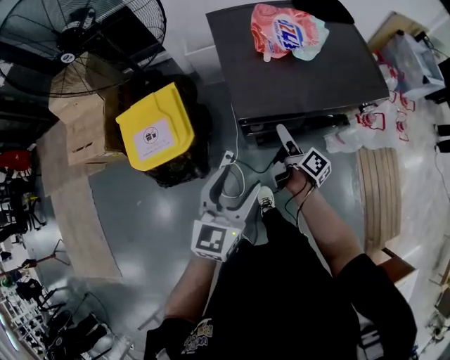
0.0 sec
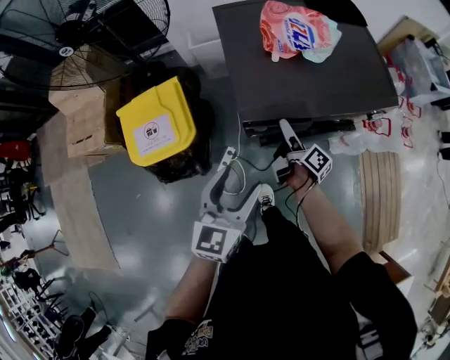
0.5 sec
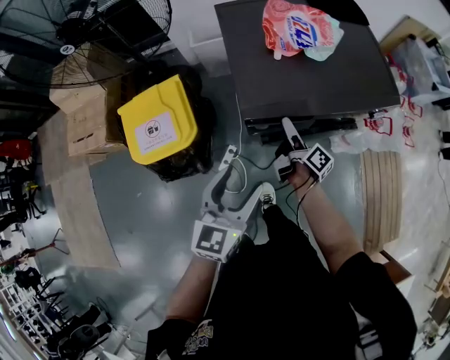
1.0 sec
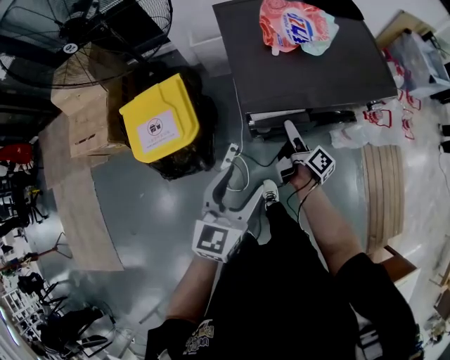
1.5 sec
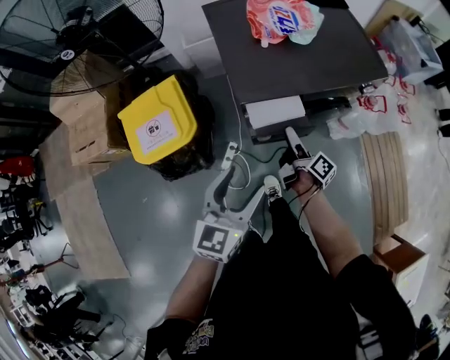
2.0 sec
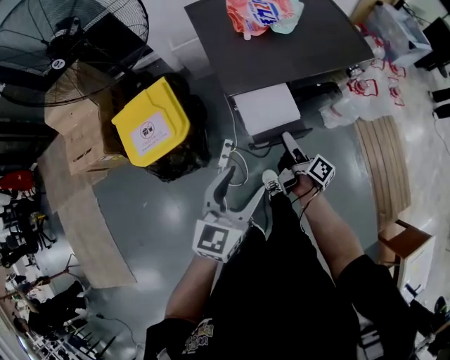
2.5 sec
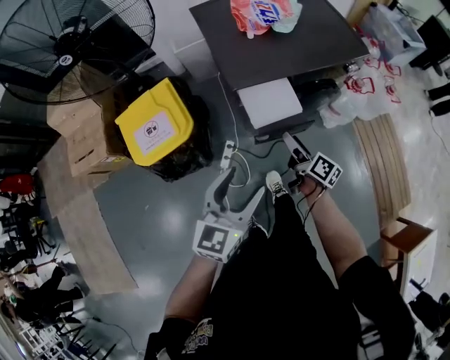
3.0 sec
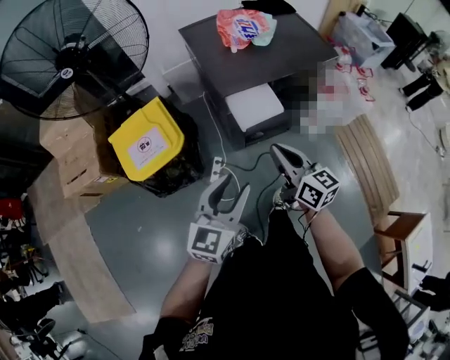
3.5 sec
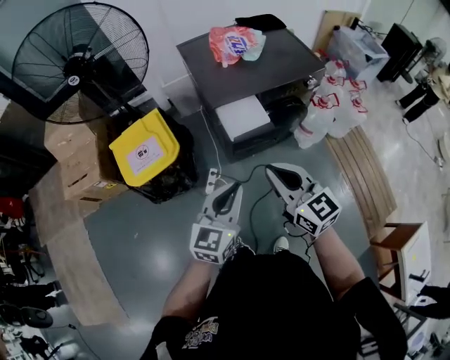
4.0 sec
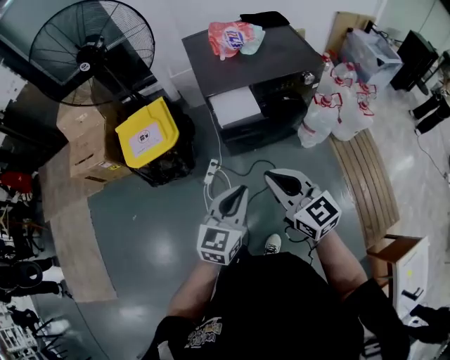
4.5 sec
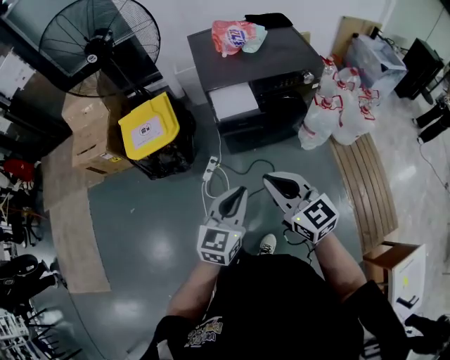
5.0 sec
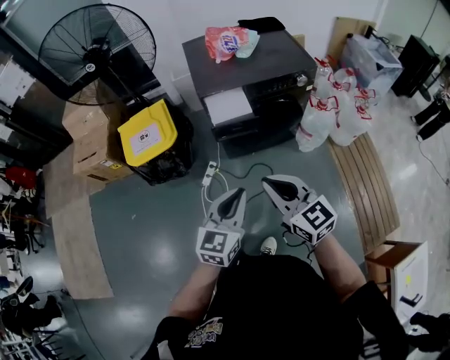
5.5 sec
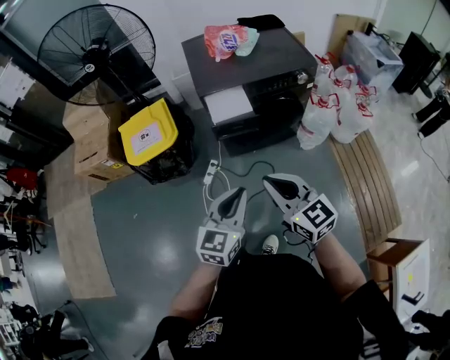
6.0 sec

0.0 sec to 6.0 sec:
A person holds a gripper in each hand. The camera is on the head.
0.0 sec to 2.0 sec: Both grippers move backward, approximately 5 cm.
2.0 sec to 4.0 sec: The left gripper heads backward, covering about 15 cm, and closes. Meanwhile the right gripper is displaced upward and backward by roughly 35 cm, twists some 80 degrees counterclockwise, seen from behind, and closes up.
4.0 sec to 6.0 sec: The grippers both shift backward and to the right by roughly 15 cm.

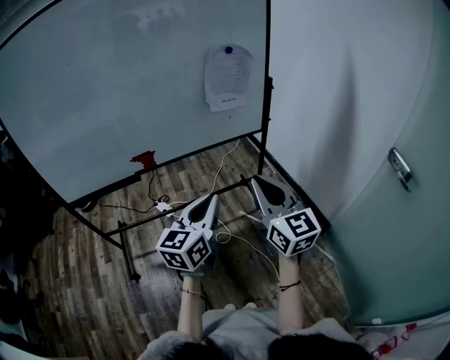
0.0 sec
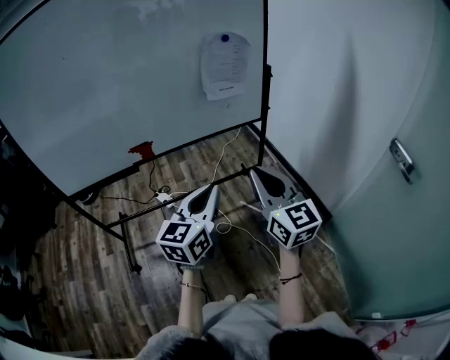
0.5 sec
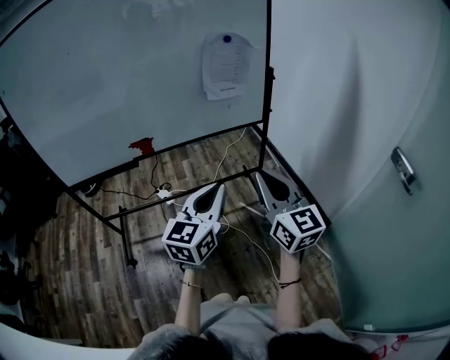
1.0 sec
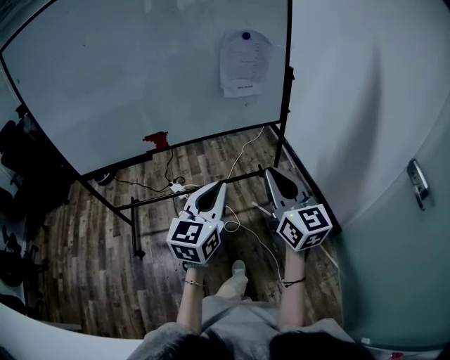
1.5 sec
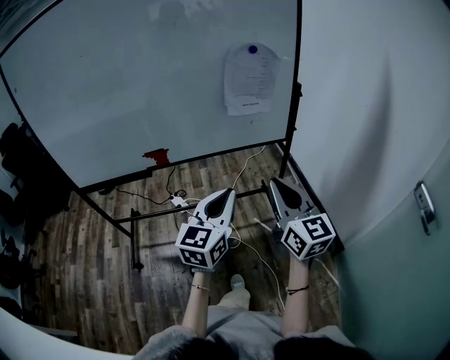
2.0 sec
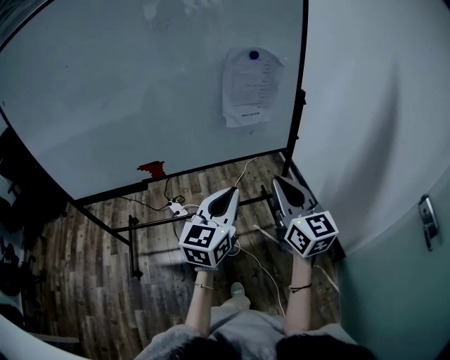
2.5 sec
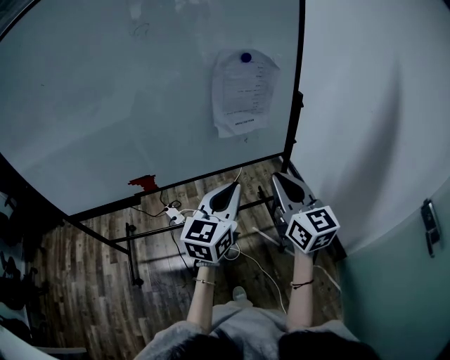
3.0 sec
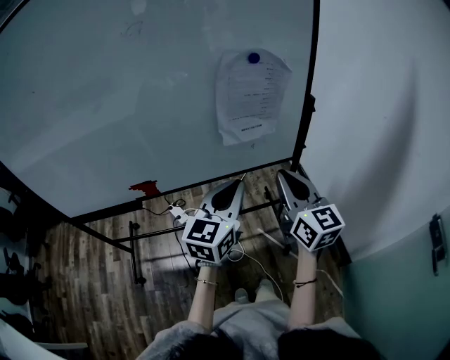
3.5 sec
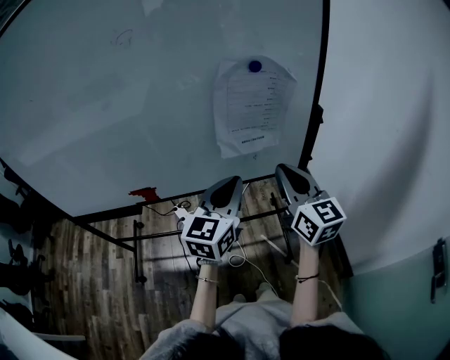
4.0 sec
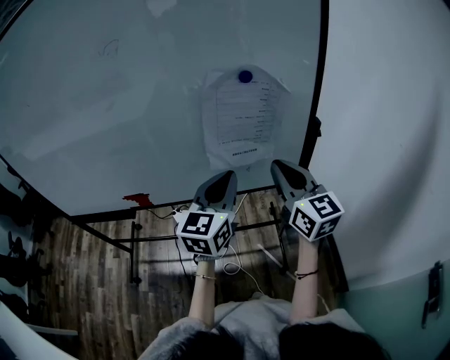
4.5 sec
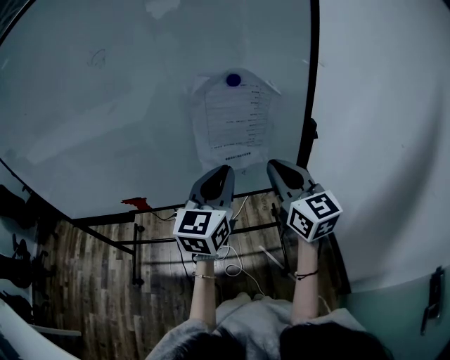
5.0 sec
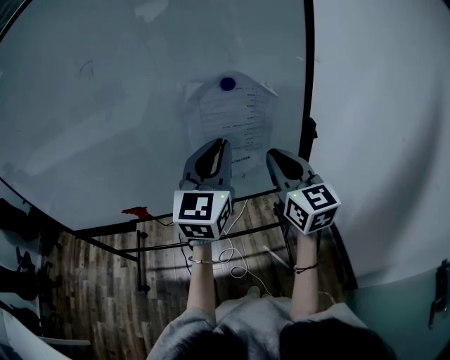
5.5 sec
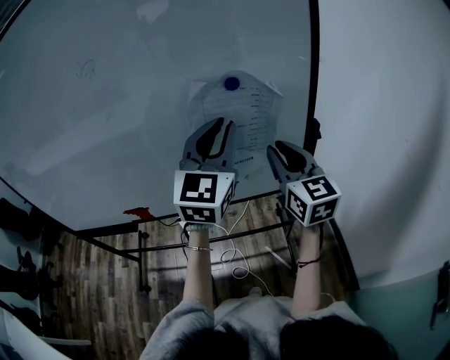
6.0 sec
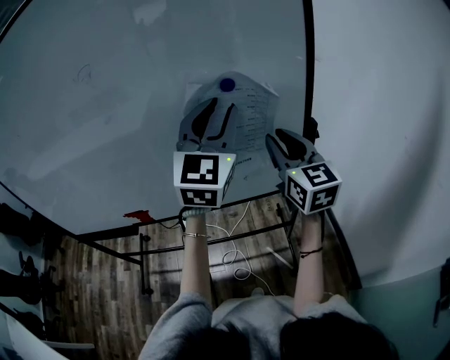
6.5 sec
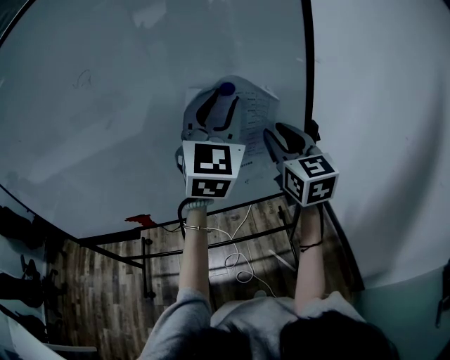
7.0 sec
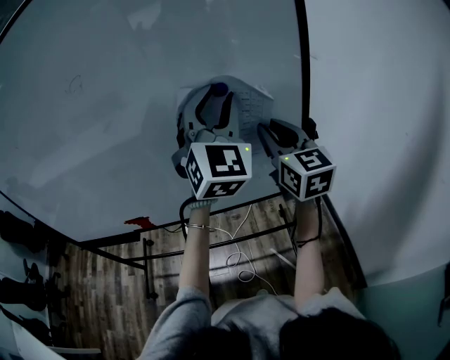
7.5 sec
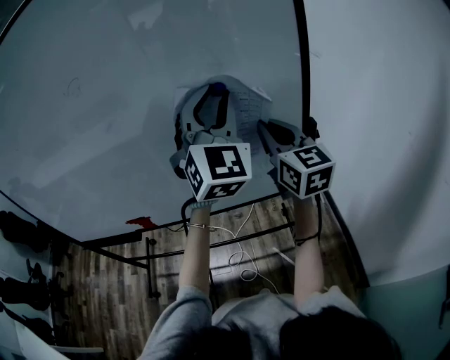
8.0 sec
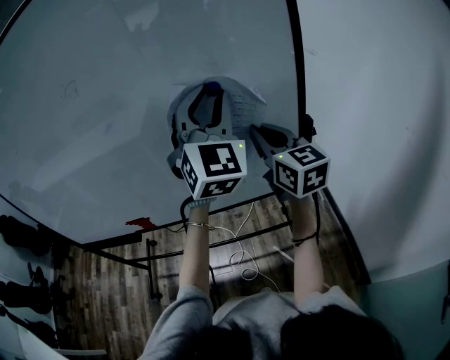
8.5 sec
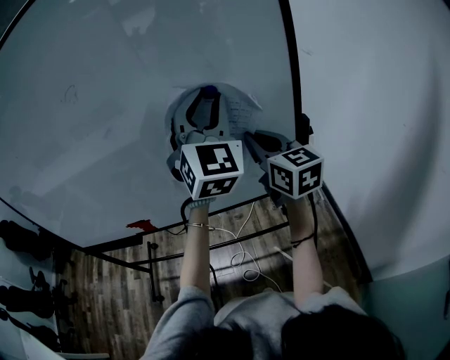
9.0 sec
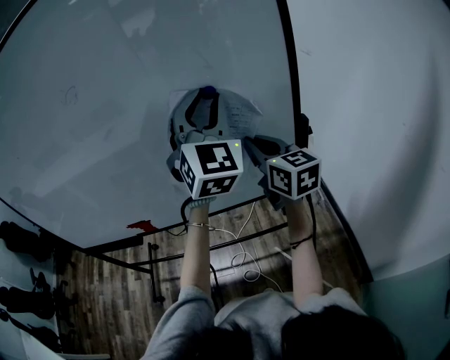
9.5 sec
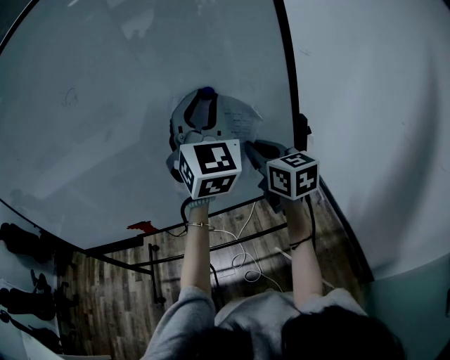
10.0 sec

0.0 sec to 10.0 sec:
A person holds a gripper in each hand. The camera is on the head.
0.0 sec to 2.0 sec: Both grippers travel together forward and to the right, approximately 10 cm.
2.0 sec to 4.0 sec: Both grippers travel together forward, about 25 cm.
4.0 sec to 6.0 sec: The left gripper travels upward, forward and to the right by about 20 cm, and changes its angle by roughly 20 degrees, while the right gripper heads forward, covering roughly 10 cm.
6.0 sec to 8.0 sec: The right gripper goes some 5 cm forward. The left gripper travels upward by approximately 5 cm, and swivels about 30 degrees.
8.0 sec to 10.0 sec: The right gripper travels downward by approximately 5 cm.

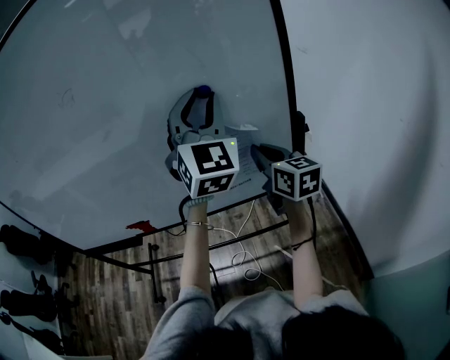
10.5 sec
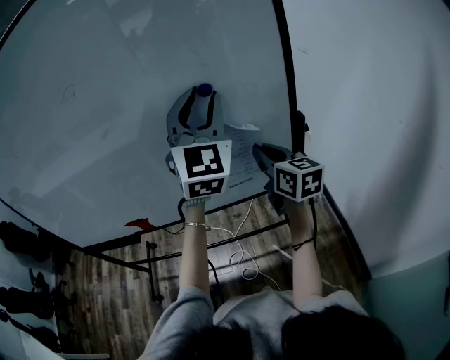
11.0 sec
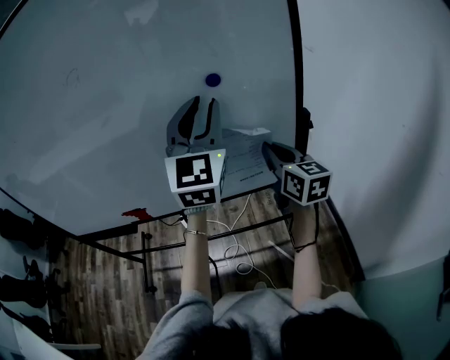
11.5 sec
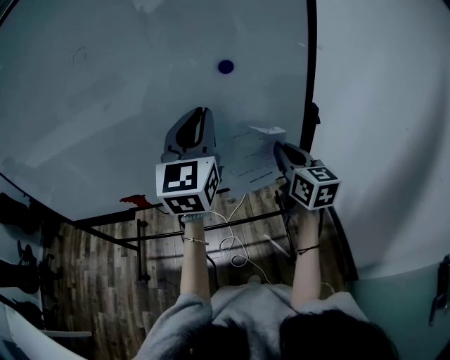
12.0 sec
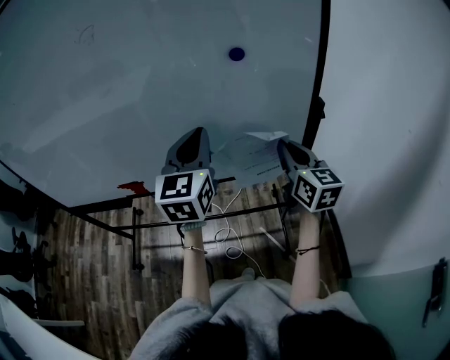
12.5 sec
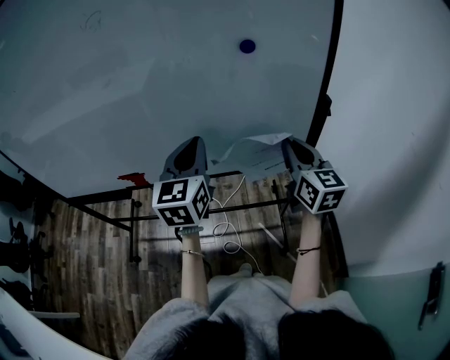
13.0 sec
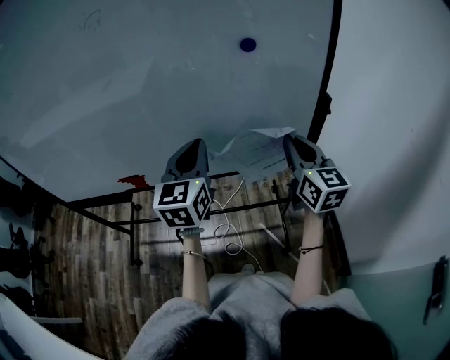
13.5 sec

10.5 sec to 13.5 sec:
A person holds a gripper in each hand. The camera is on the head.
10.5 sec to 12.0 sec: The left gripper goes approximately 10 cm to the left and downward, and rotates roughly 30 degrees.
12.0 sec to 13.5 sec: The left gripper shifts roughly 15 cm downward and to the left.

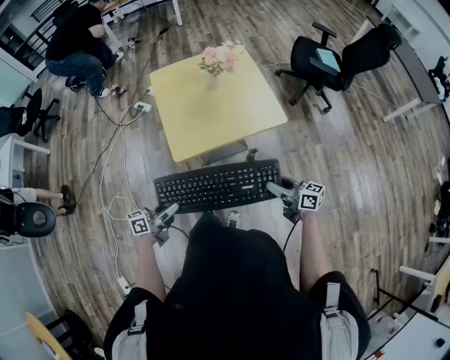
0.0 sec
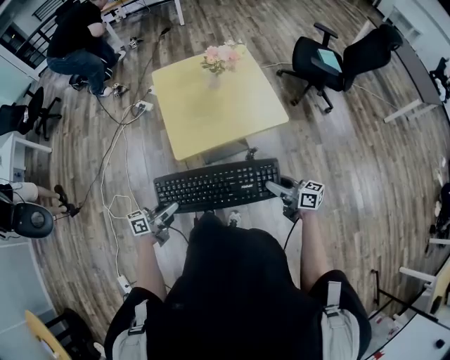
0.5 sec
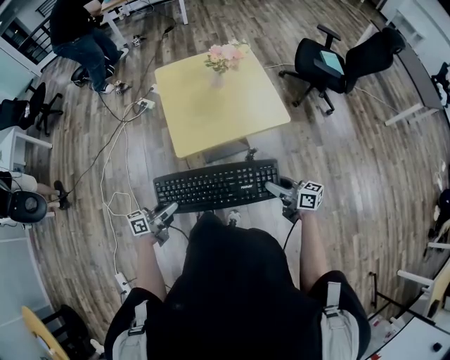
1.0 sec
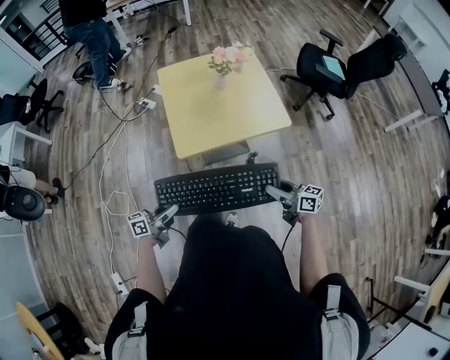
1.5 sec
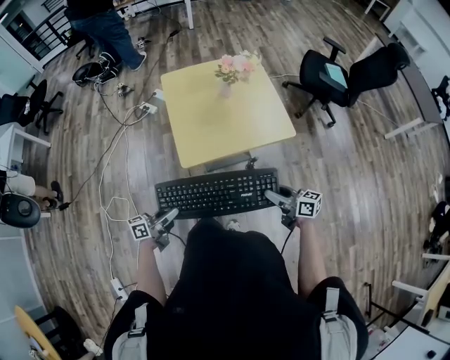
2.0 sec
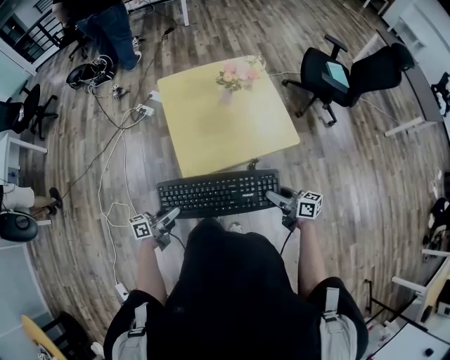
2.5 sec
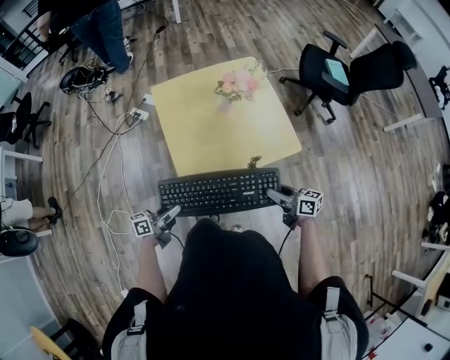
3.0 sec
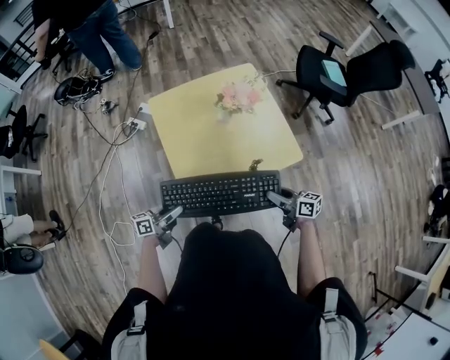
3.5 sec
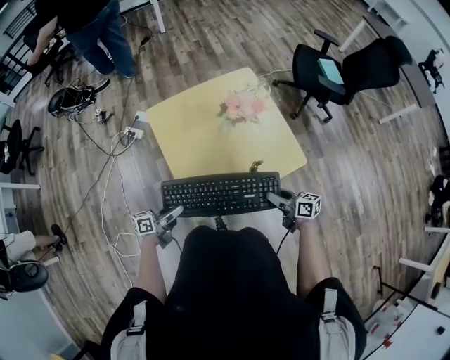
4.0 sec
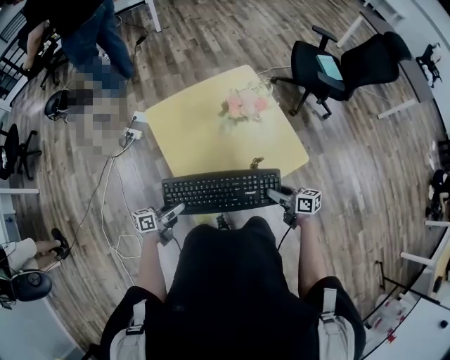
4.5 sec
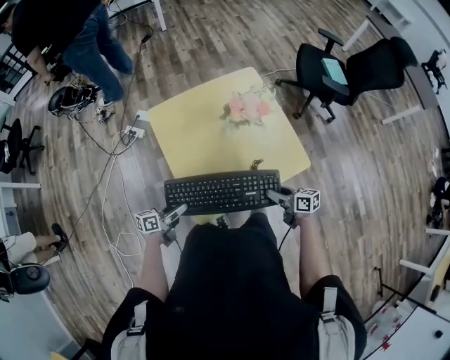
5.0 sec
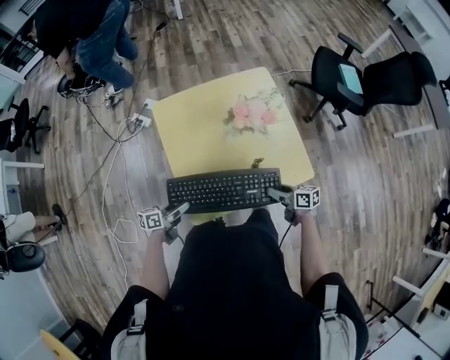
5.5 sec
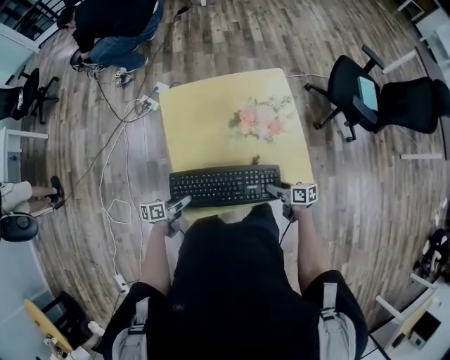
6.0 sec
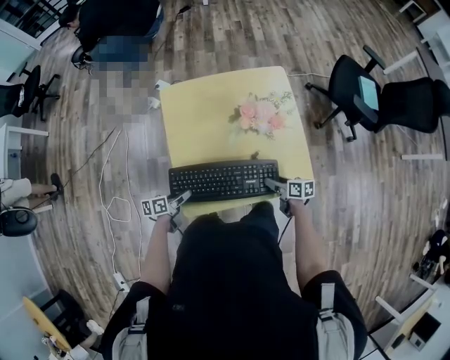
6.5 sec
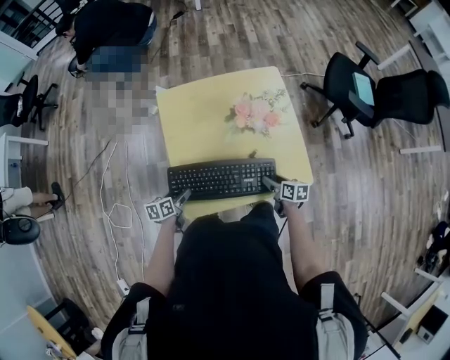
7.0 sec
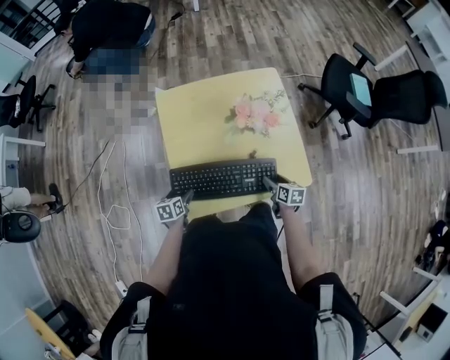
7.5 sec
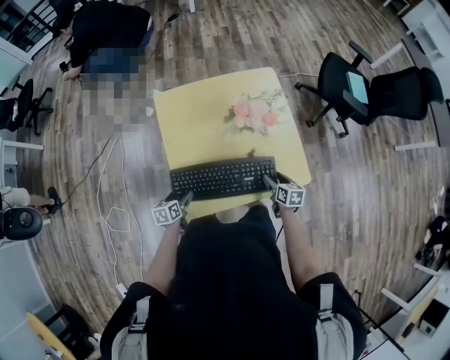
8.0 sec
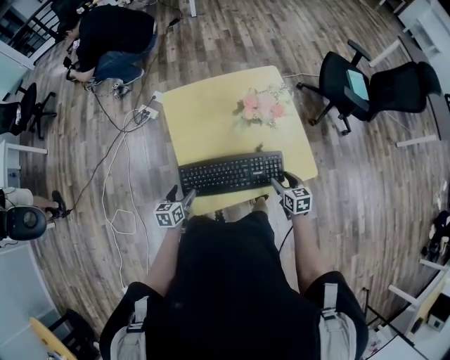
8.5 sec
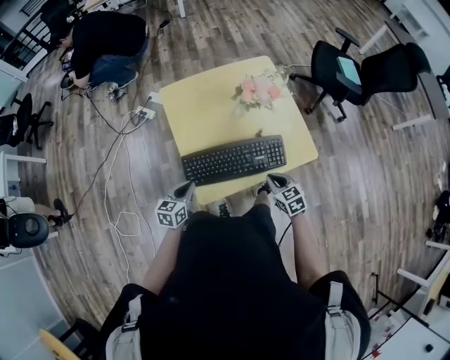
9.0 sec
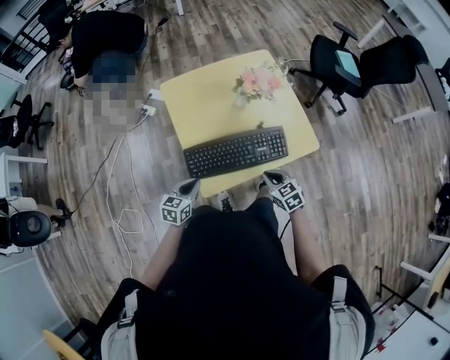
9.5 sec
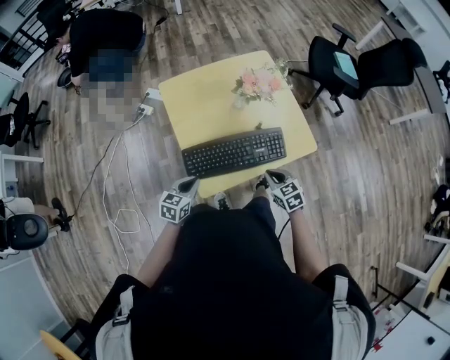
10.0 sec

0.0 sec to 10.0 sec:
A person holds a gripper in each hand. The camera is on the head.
0.0 sec to 2.0 sec: The grippers move only a little.
2.0 sec to 4.0 sec: Both grippers move forward, about 25 cm.
4.0 sec to 6.0 sec: The left gripper goes about 10 cm downward and to the right, and turns by approximately 20 degrees. The right gripper goes about 15 cm forward and downward, and changes its angle by roughly 20 degrees.
6.0 sec to 8.0 sec: The left gripper rotates some 30 degrees, and opens up, while the right gripper rotates about 30 degrees.
8.0 sec to 10.0 sec: The left gripper shifts some 15 cm upward and backward, turns by roughly 40 degrees, and closes its fingers. The right gripper is displaced backward, to the left and upward by about 20 cm, turns by some 30 degrees, and closes its fingers.
